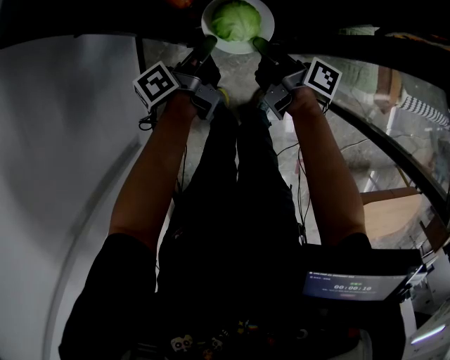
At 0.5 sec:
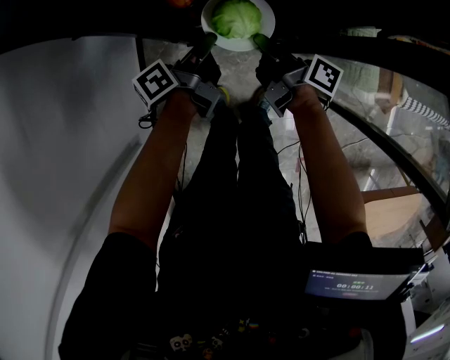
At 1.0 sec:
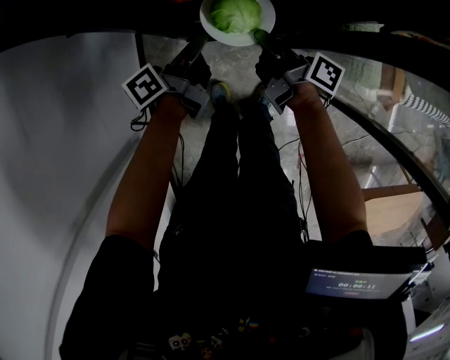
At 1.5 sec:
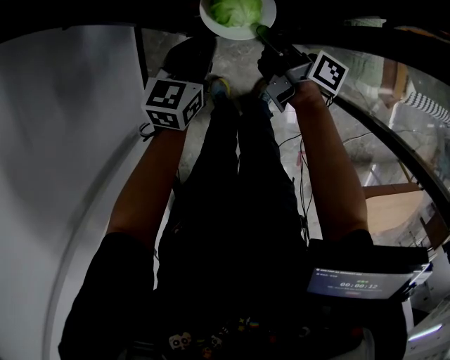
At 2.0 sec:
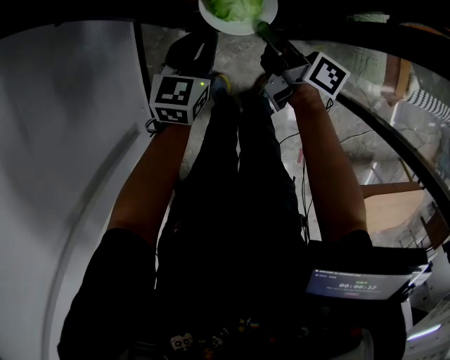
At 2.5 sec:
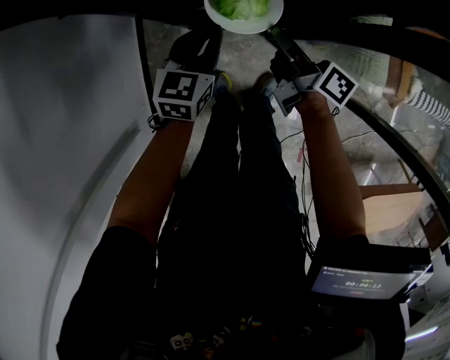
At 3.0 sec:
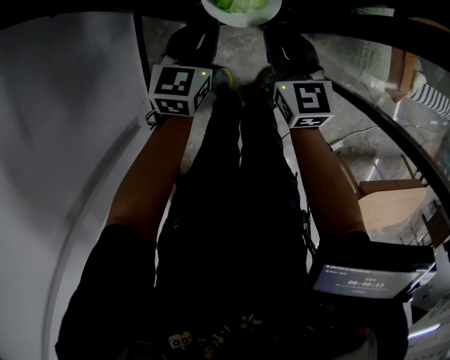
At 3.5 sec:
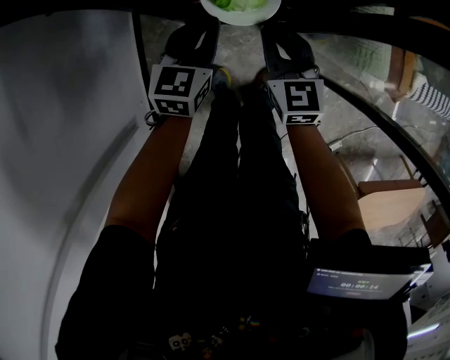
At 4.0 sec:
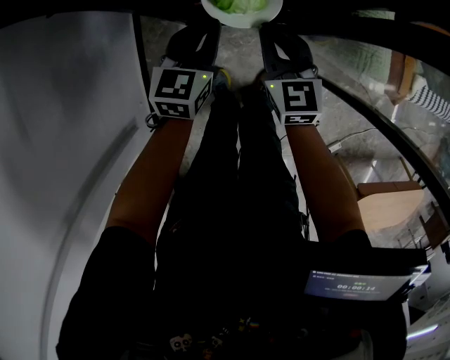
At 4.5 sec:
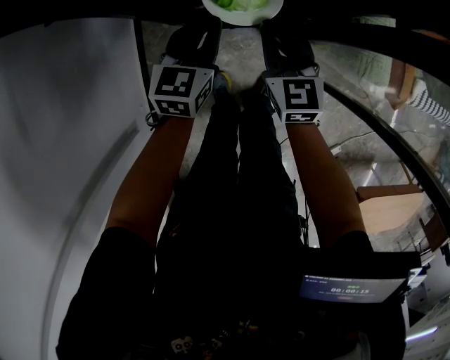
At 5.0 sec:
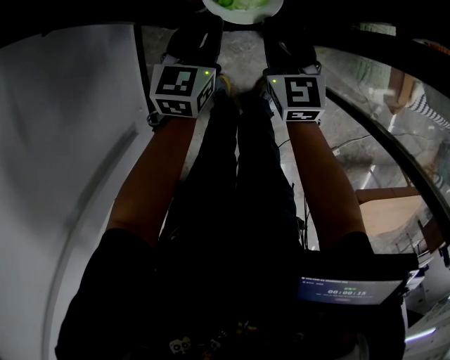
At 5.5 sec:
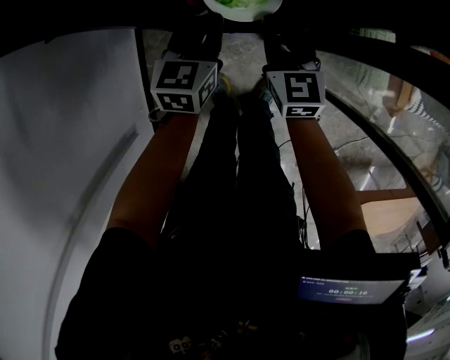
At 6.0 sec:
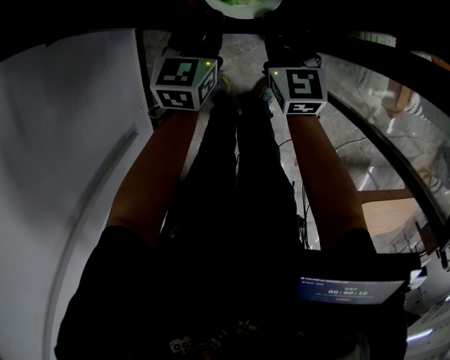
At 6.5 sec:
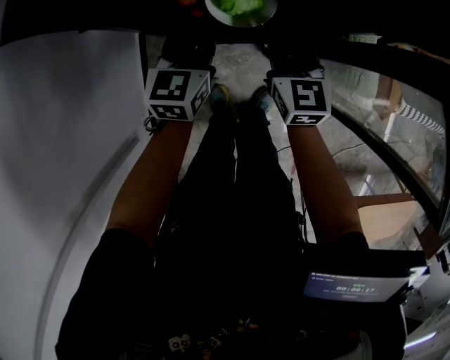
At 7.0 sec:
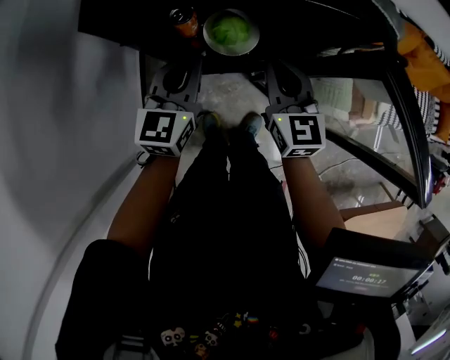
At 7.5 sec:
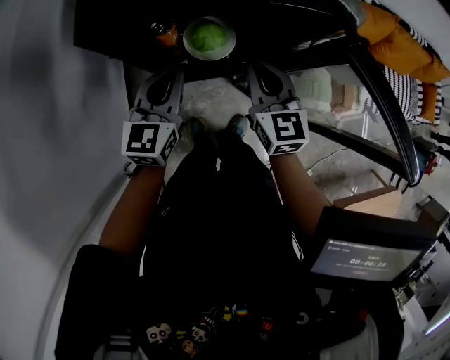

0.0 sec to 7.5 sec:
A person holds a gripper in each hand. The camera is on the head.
0.0 sec to 2.0 sec: The left gripper rotates around the line of its fingers by about 70 degrees, clockwise from behind.
2.0 sec to 4.0 sec: The right gripper twists about 70 degrees counterclockwise, seen from behind.
4.0 sec to 5.5 sec: Both grippers travel together forward, roughly 5 cm.
5.5 sec to 7.5 sec: Both grippers move upward and backward, approximately 15 cm.

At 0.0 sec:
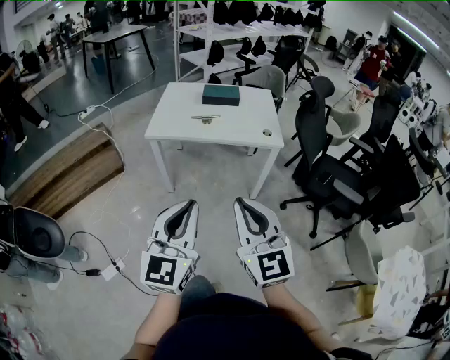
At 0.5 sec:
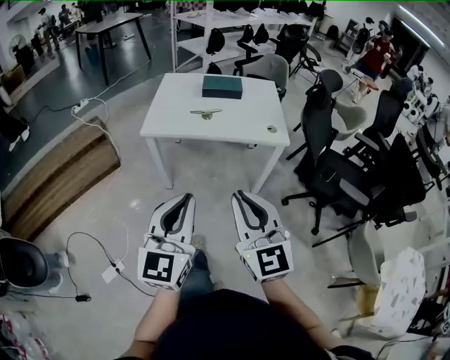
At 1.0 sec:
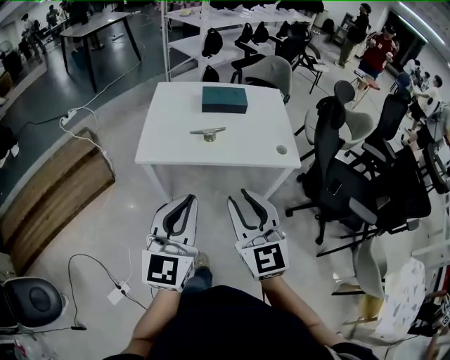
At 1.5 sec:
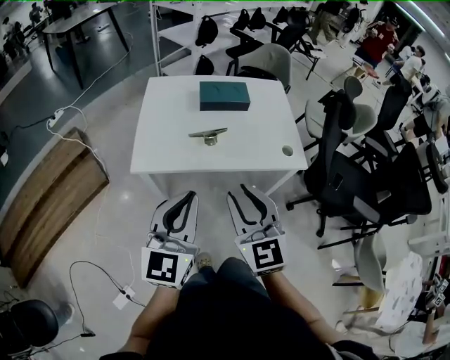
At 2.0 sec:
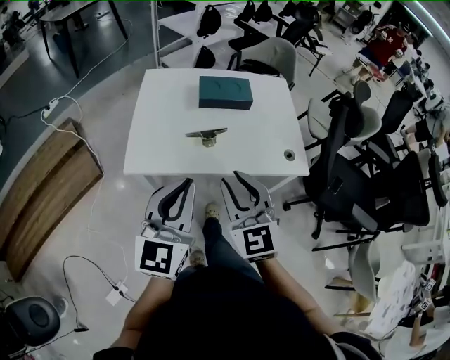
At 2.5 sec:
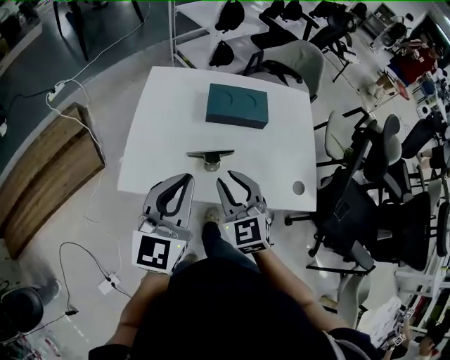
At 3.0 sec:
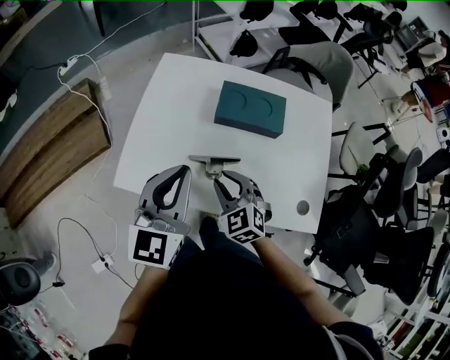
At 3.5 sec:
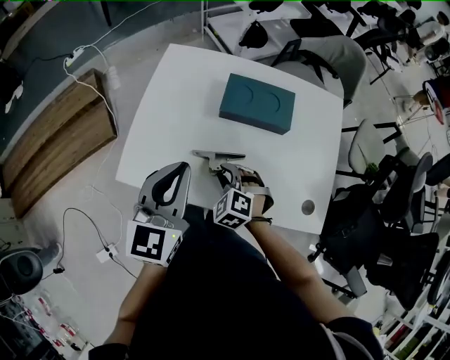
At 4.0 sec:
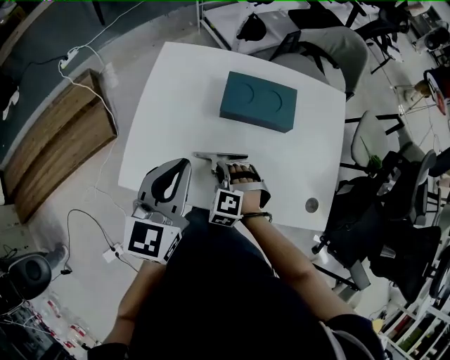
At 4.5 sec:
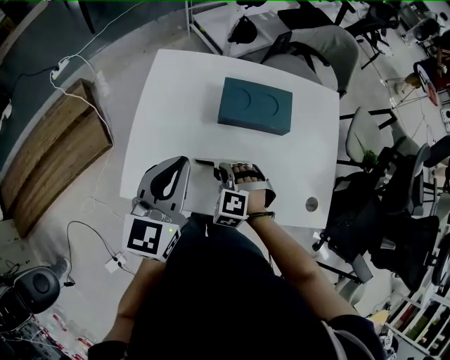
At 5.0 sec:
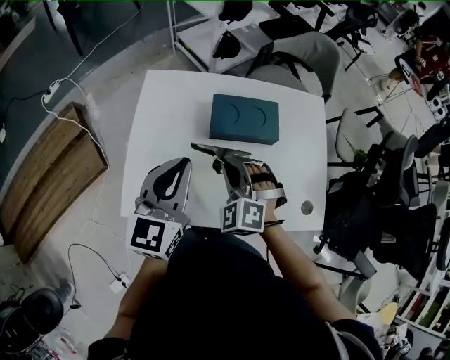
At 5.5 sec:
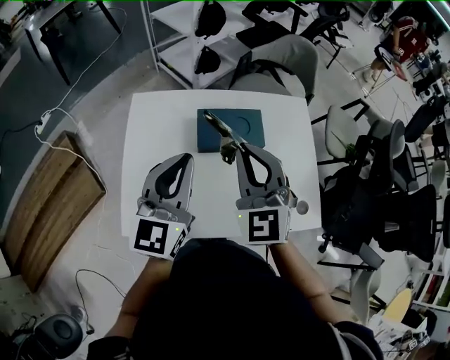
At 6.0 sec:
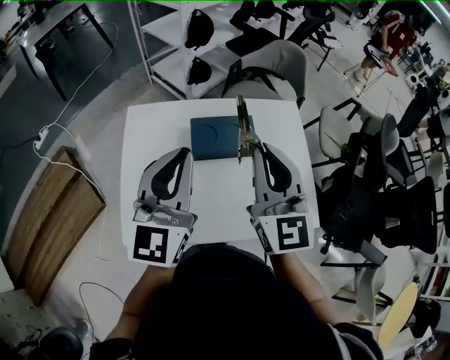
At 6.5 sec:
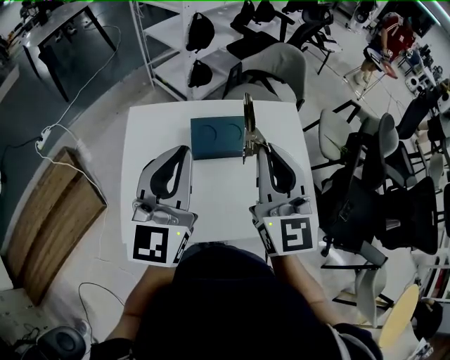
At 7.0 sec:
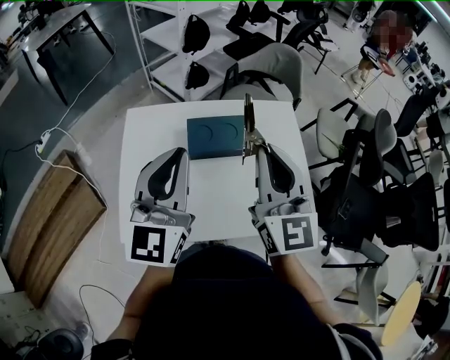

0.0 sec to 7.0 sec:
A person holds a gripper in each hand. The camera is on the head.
0.0 sec to 2.0 sec: Both grippers are carried forward, some 50 cm. The right gripper opens.
2.0 sec to 3.5 sec: The right gripper travels downward and forward by about 35 cm, and angles its fingers downward, by about 40 degrees; the left gripper travels forward by roughly 25 cm.
3.5 sec to 5.0 sec: The left gripper moves forward, roughly 5 cm; the right gripper is displaced upward and forward by some 15 cm, and turns by some 20 degrees.
5.0 sec to 7.0 sec: The right gripper shifts approximately 25 cm upward and to the right, and angles its fingers upward, by approximately 40 degrees, while the left gripper travels upward and to the right by some 15 cm.

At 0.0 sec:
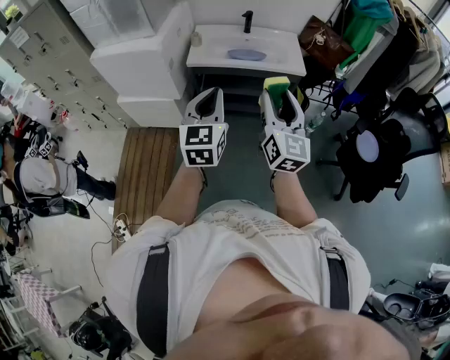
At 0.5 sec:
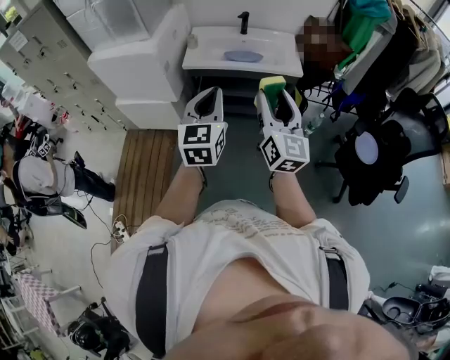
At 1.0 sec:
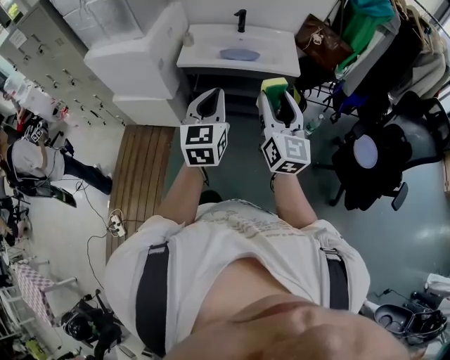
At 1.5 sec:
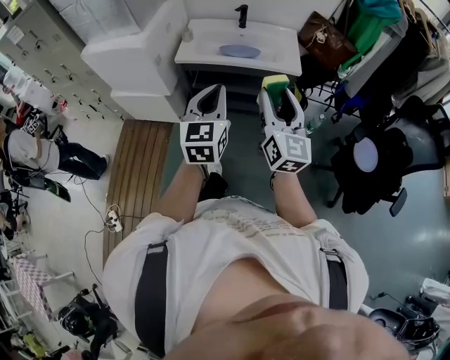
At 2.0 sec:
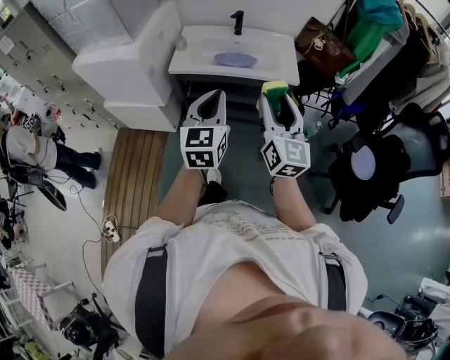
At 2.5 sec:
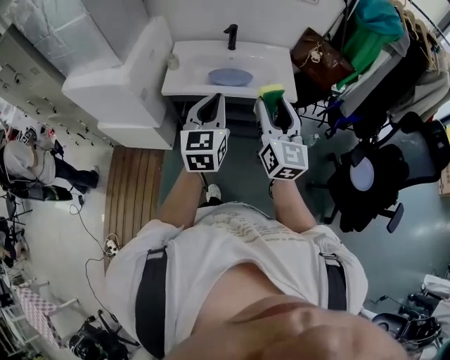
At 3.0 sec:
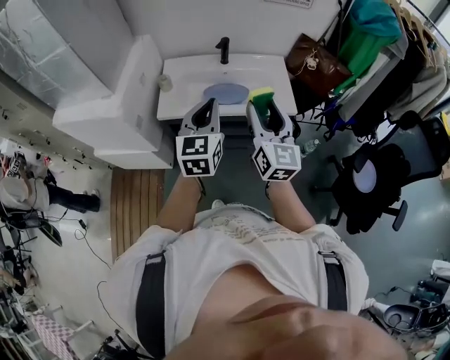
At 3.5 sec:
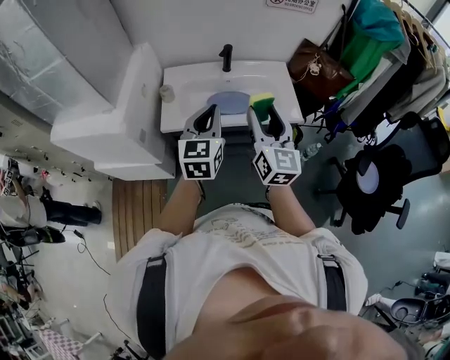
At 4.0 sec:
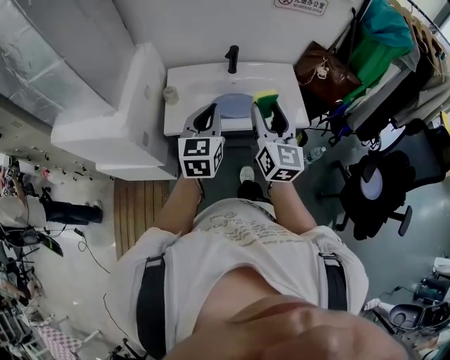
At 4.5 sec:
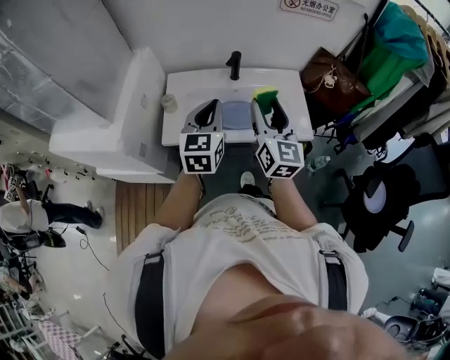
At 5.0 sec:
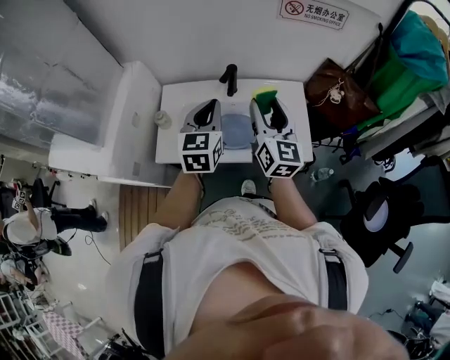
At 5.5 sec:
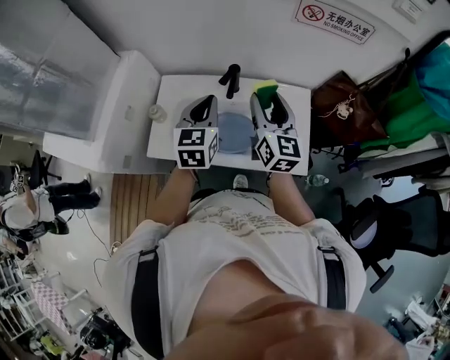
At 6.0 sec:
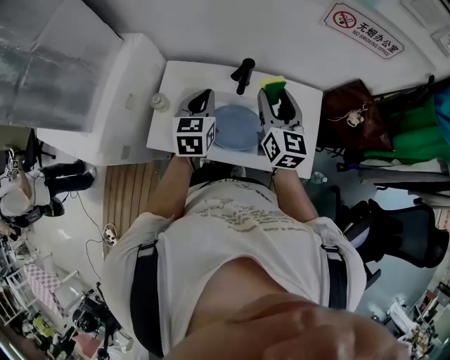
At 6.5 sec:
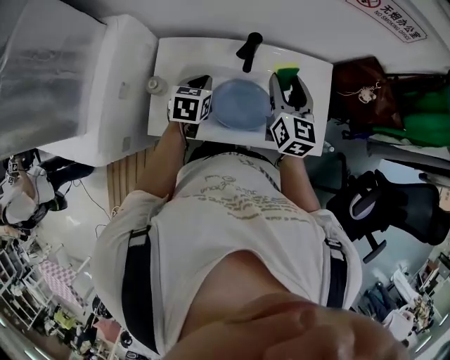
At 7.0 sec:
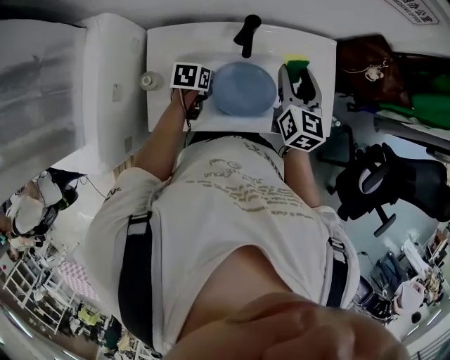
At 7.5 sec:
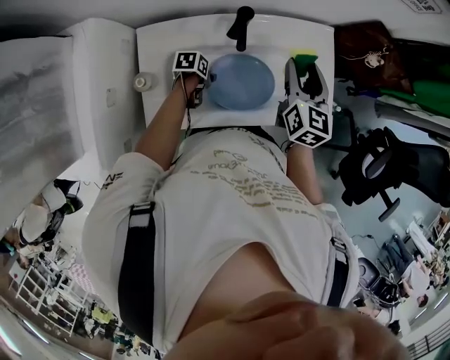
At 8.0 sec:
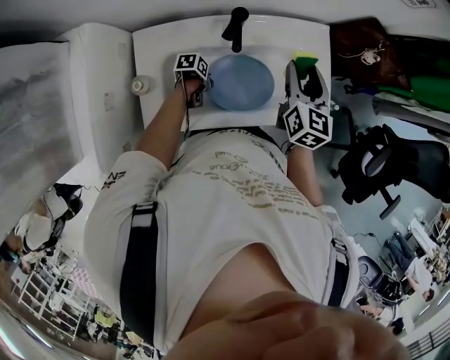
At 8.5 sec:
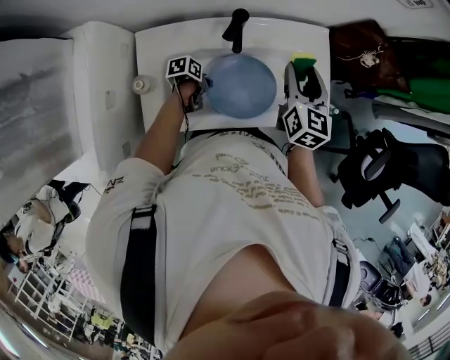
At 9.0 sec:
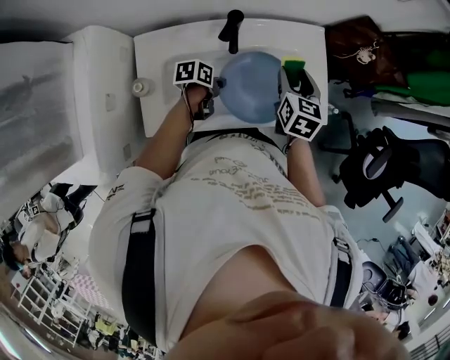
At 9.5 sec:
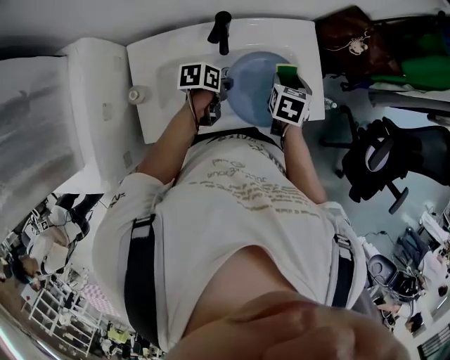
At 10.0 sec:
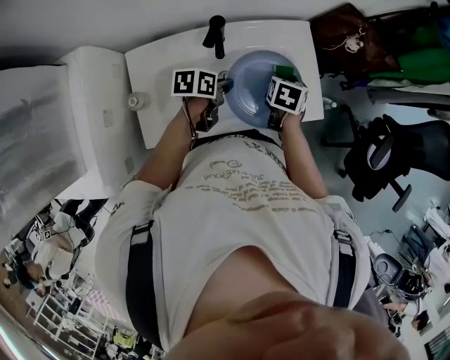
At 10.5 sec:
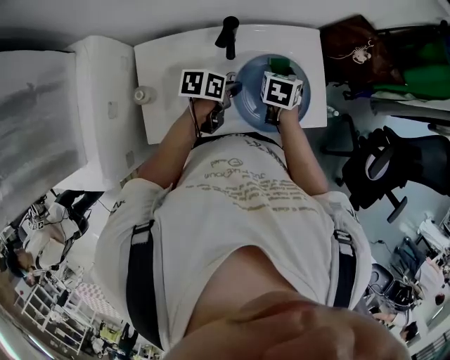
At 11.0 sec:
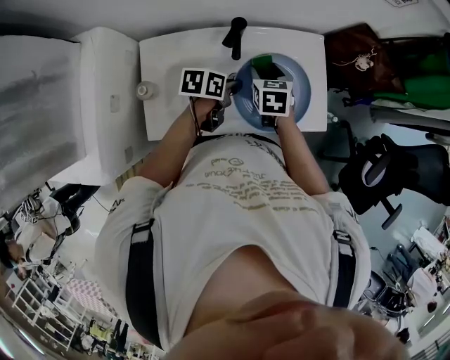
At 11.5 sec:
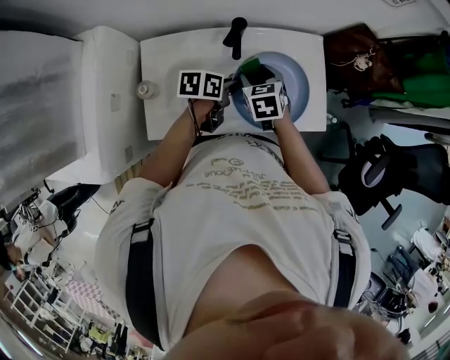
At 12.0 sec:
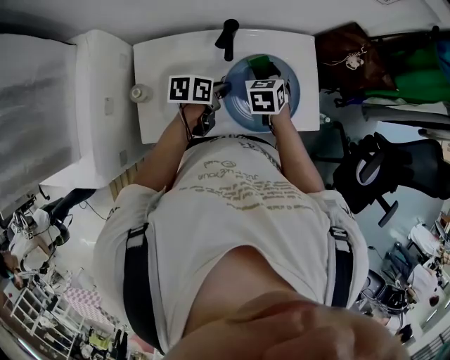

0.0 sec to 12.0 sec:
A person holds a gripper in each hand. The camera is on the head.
0.0 sec to 2.0 sec: Both grippers travel together forward and to the right, about 15 cm.
2.0 sec to 4.0 sec: Both grippers travel together forward, about 25 cm.
4.0 sec to 6.0 sec: Both grippers travel together forward, about 30 cm. The left gripper swivels about 20 degrees.
6.0 sec to 8.0 sec: The left gripper is displaced downward by approximately 35 cm, angles its fingers downward, by some 30 degrees, and opens and closes again; the right gripper travels downward by about 10 cm, and turns by roughly 30 degrees.
8.0 sec to 10.0 sec: The right gripper heads downward and to the right, covering approximately 15 cm, and angles its fingers downward, by some 40 degrees. Meanwhile the left gripper is displaced upward and forward by some 20 cm, and turns by some 30 degrees.
10.0 sec to 12.0 sec: The right gripper moves to the left, roughly 10 cm, and rotates approximately 30 degrees.
